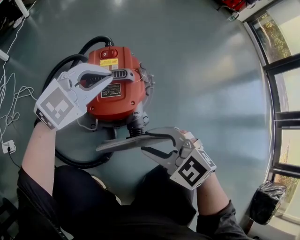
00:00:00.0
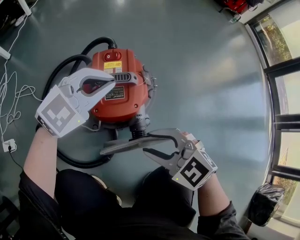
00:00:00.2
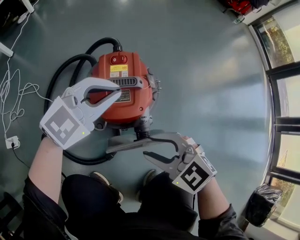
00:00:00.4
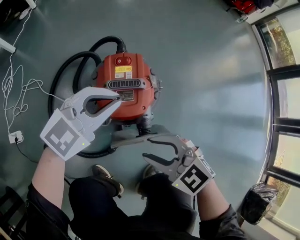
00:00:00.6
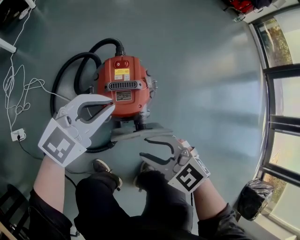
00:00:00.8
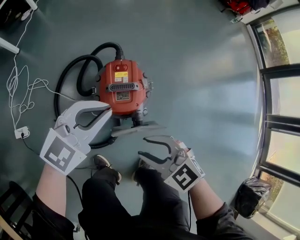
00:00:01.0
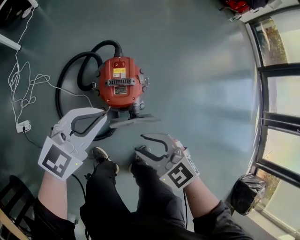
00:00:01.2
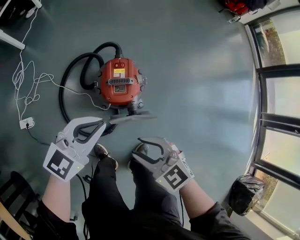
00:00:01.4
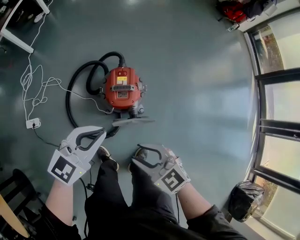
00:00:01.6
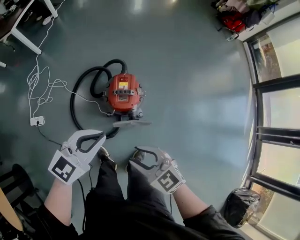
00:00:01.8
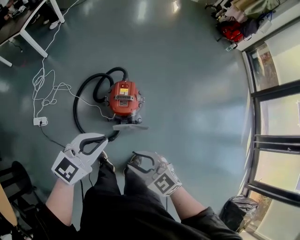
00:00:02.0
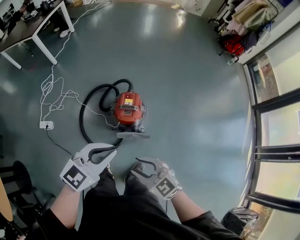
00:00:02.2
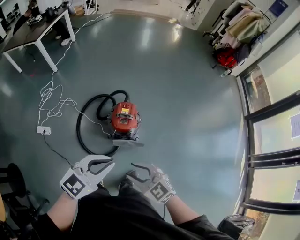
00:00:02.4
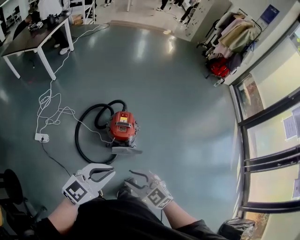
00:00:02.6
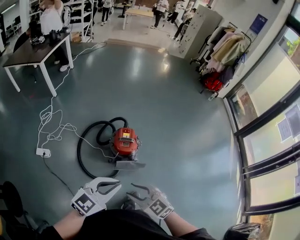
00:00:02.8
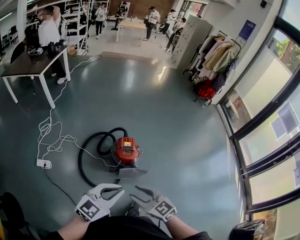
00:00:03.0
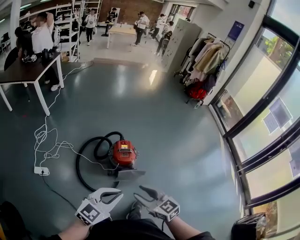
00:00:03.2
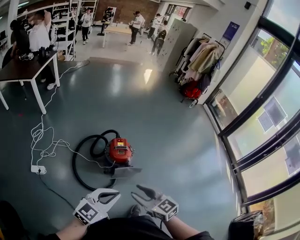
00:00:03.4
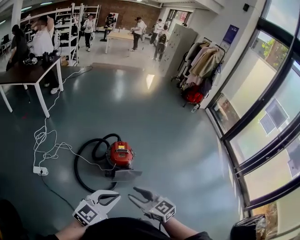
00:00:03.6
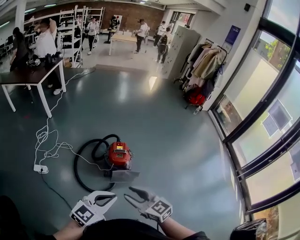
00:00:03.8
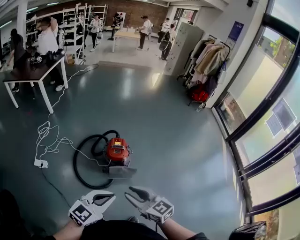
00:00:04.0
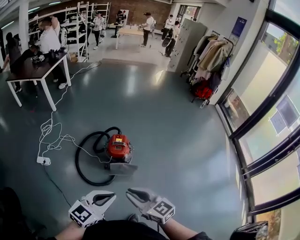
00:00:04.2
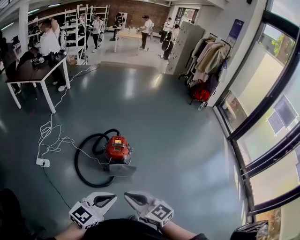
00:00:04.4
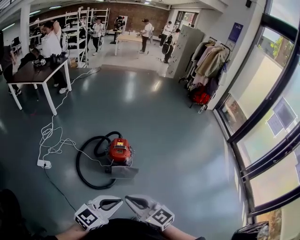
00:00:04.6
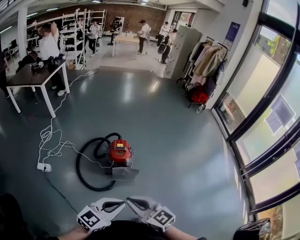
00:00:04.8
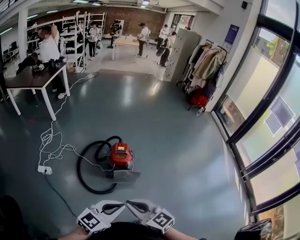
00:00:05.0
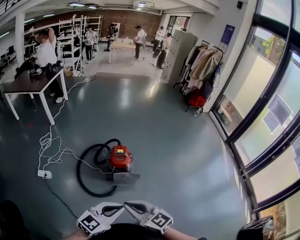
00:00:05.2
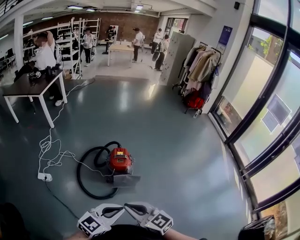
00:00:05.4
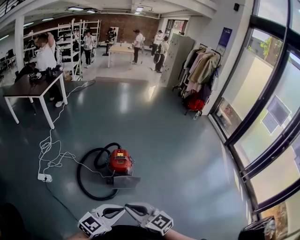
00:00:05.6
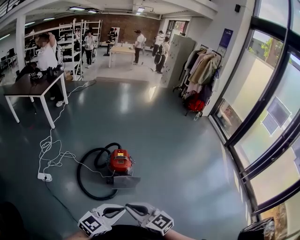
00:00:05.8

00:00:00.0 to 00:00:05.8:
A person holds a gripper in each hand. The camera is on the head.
00:00:00.0 to 00:00:01.4: The grippers both shift upward by some 25 cm. The left gripper rotates roughly 30 degrees.
00:00:01.4 to 00:00:02.8: The grippers both shift upward and backward by some 30 cm.
00:00:02.8 to 00:00:04.4: The right gripper travels backward, upward and to the right by roughly 15 cm, changes its angle by approximately 20 degrees, and closes up; the left gripper shifts approximately 15 cm backward and to the right.
00:00:04.4 to 00:00:05.8: The right gripper changes place by about 5 cm.

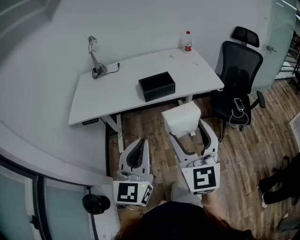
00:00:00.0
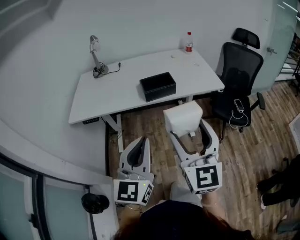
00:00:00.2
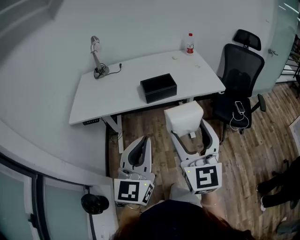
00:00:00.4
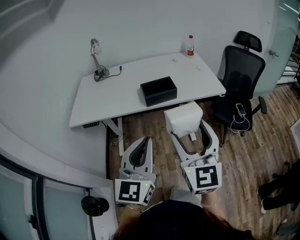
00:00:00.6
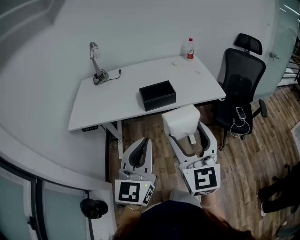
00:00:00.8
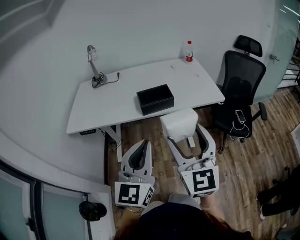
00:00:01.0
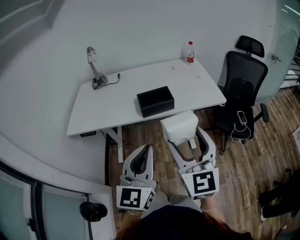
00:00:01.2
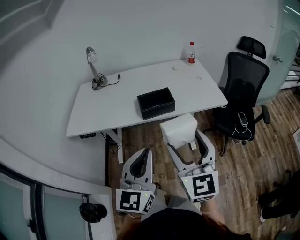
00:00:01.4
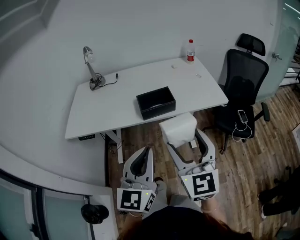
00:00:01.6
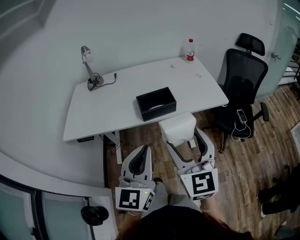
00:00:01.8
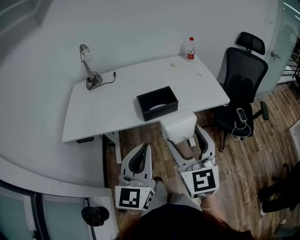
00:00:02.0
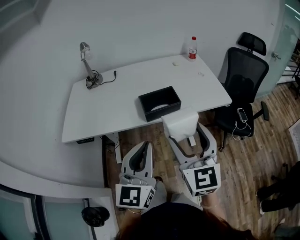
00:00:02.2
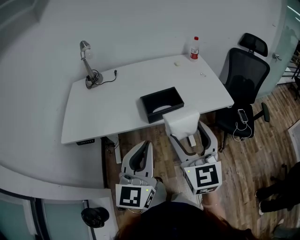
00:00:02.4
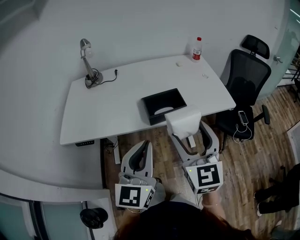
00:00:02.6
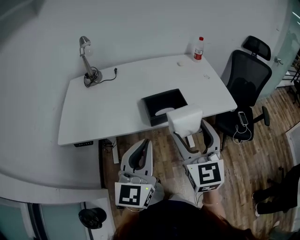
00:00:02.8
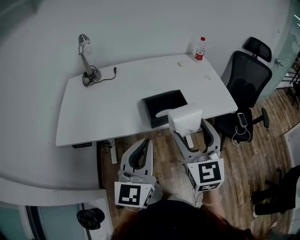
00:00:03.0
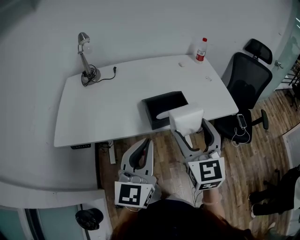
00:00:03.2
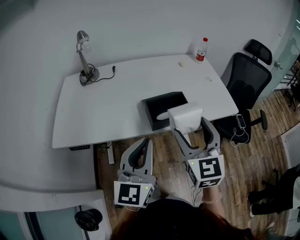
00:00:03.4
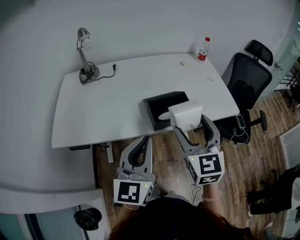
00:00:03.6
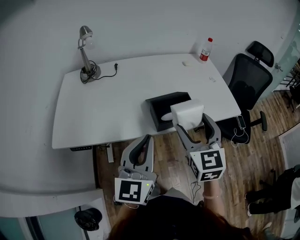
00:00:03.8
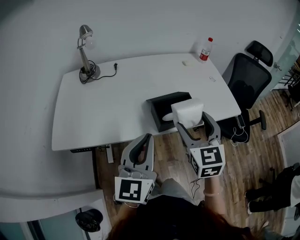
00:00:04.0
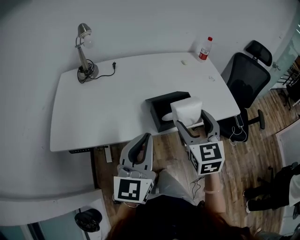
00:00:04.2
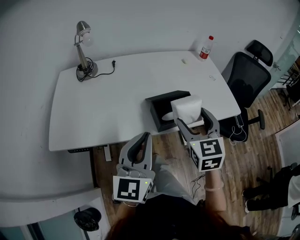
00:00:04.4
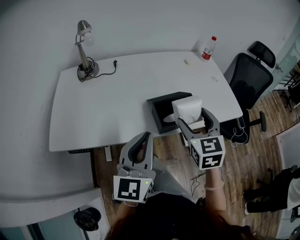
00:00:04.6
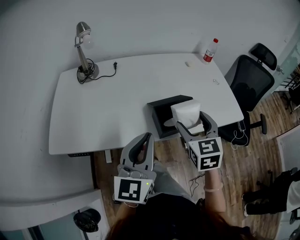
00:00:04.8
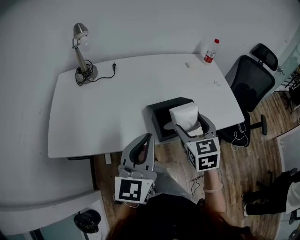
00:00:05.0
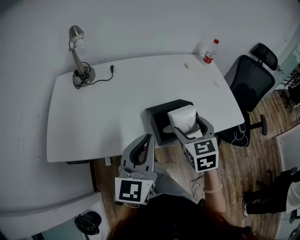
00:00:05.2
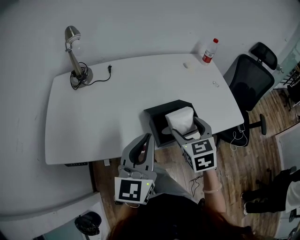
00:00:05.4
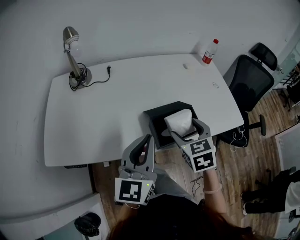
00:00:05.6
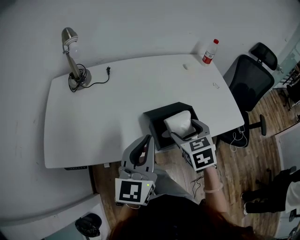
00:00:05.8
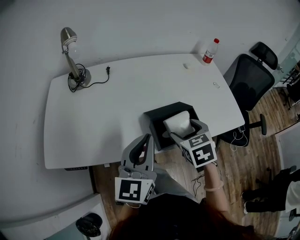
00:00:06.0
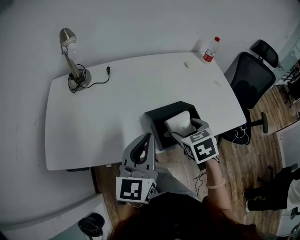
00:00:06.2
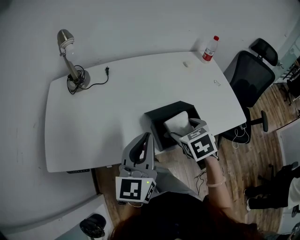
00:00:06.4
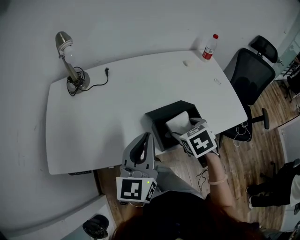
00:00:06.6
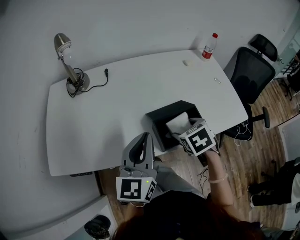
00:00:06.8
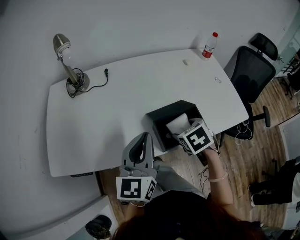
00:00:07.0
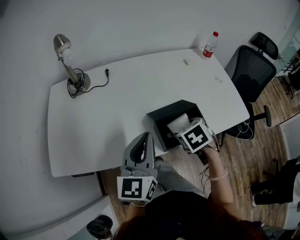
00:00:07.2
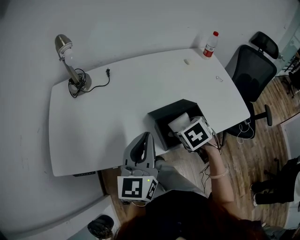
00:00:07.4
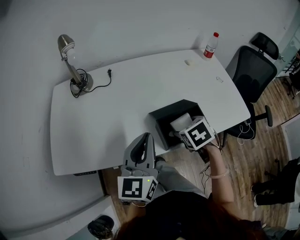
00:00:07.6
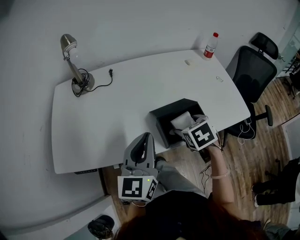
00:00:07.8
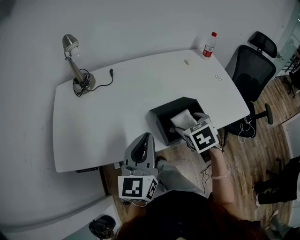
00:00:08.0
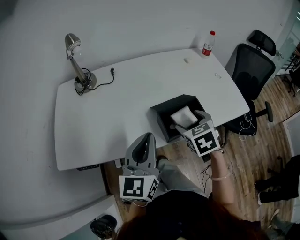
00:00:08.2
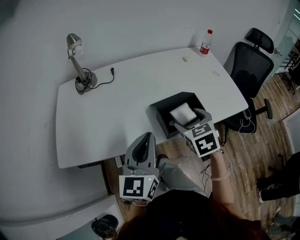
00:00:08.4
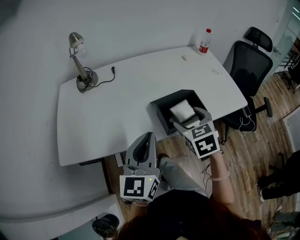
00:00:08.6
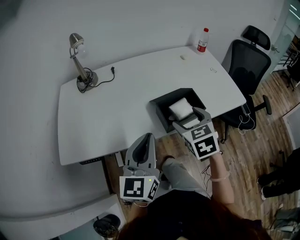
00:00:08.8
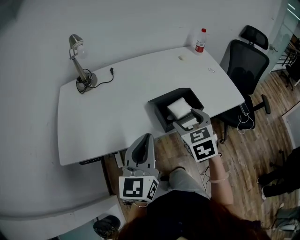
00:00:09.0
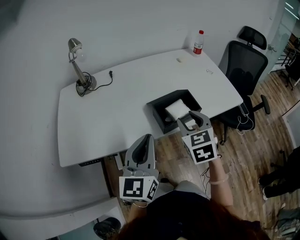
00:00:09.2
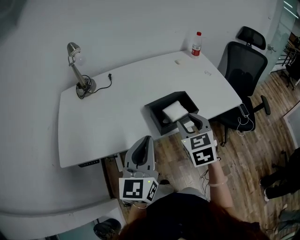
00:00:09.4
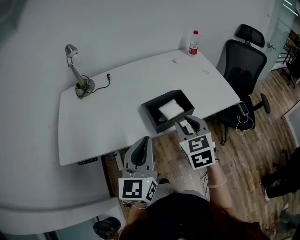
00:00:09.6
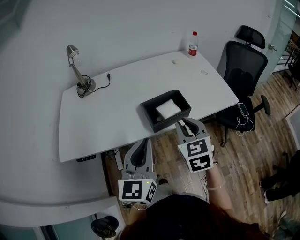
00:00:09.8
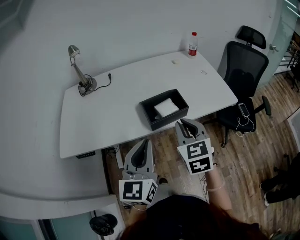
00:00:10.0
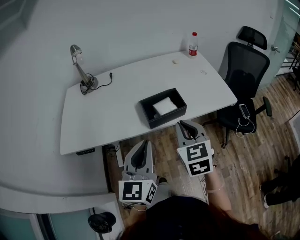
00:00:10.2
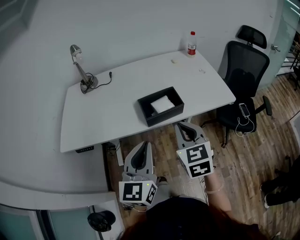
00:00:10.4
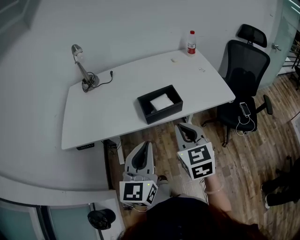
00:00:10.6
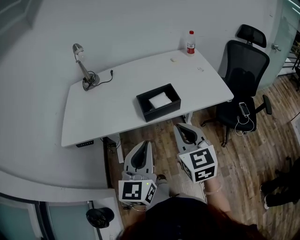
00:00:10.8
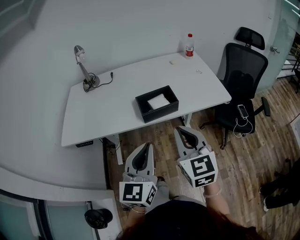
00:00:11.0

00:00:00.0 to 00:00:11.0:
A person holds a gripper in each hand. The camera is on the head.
00:00:00.0 to 00:00:01.6: Both grippers move forward, approximately 10 cm.
00:00:01.6 to 00:00:03.2: Both grippers move forward and to the left, some 15 cm.
00:00:03.2 to 00:00:04.8: The left gripper is displaced forward and to the left by some 10 cm; the right gripper shifts roughly 15 cm forward and downward.
00:00:04.8 to 00:00:06.2: The right gripper moves downward, some 10 cm, and swivels about 30 degrees; the left gripper shifts roughly 5 cm forward.
00:00:06.2 to 00:00:07.8: There are only small adjustments of the grippers.
00:00:07.8 to 00:00:09.4: The left gripper is displaced backward by about 10 cm, while the right gripper is displaced upward and backward by some 10 cm, tips its fingers upward by about 30 degrees, and closes its fingers.
00:00:09.4 to 00:00:11.0: The right gripper is displaced backward, upward and to the right by about 15 cm, swivels about 20 degrees, and closes its fingers. The left gripper moves backward and to the right, approximately 15 cm.

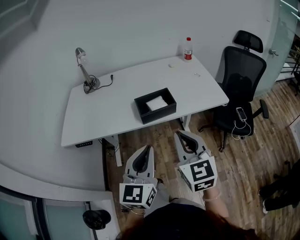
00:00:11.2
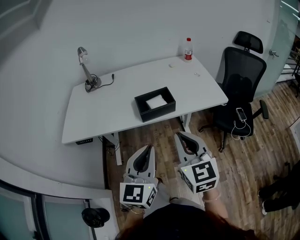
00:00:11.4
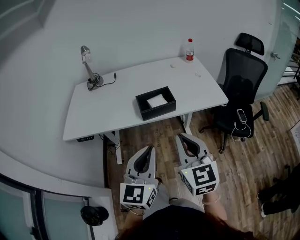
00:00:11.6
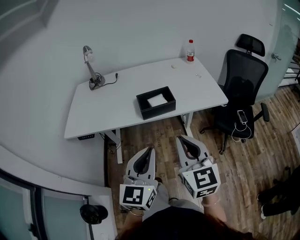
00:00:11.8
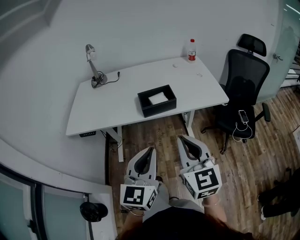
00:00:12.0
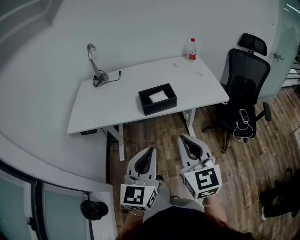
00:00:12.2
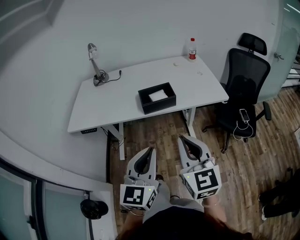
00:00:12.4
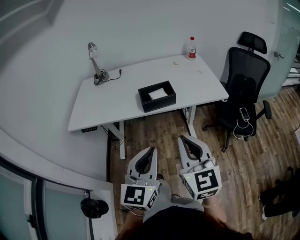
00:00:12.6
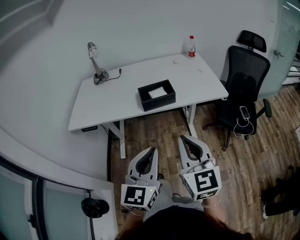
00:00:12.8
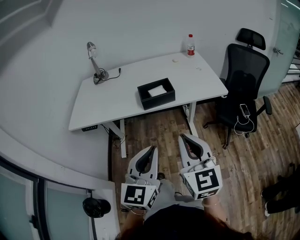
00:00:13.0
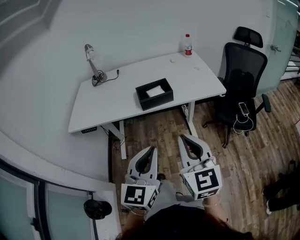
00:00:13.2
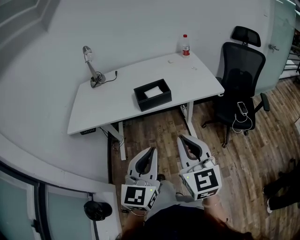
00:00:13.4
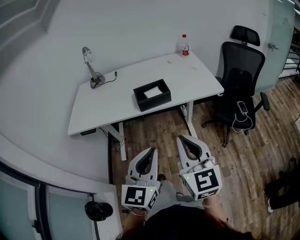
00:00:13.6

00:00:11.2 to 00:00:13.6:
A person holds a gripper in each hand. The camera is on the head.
00:00:11.2 to 00:00:12.4: Both grippers move backward, roughly 10 cm.
00:00:12.4 to 00:00:13.6: The grippers stay close to where they were, moving slightly.

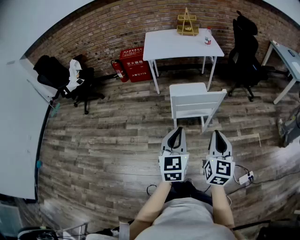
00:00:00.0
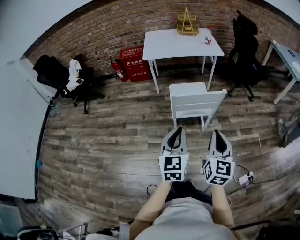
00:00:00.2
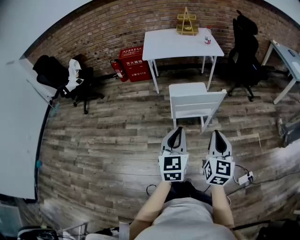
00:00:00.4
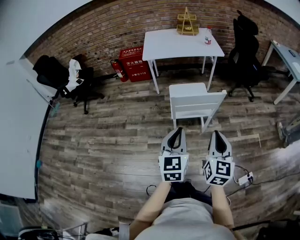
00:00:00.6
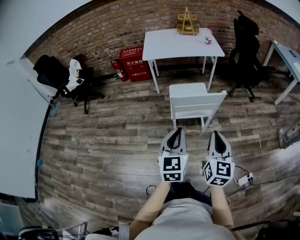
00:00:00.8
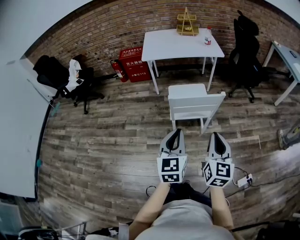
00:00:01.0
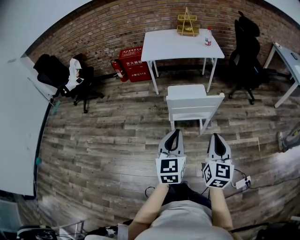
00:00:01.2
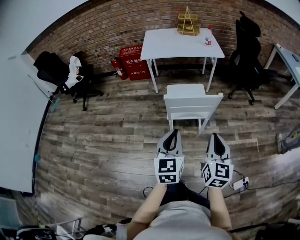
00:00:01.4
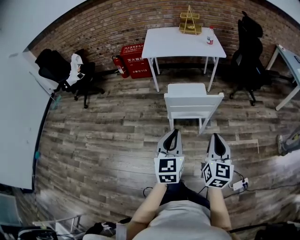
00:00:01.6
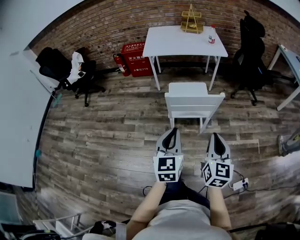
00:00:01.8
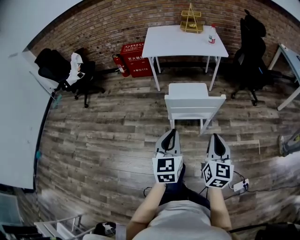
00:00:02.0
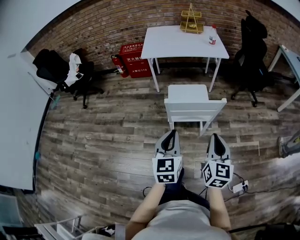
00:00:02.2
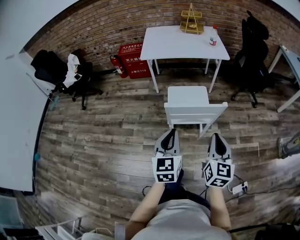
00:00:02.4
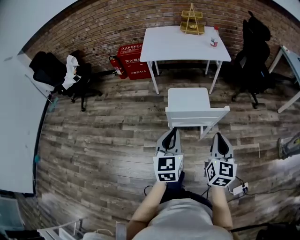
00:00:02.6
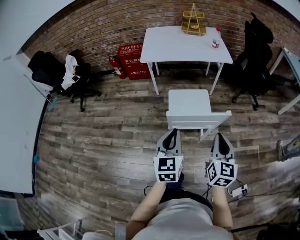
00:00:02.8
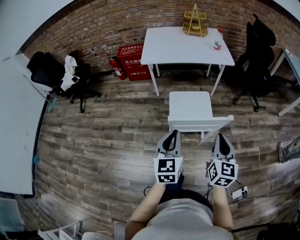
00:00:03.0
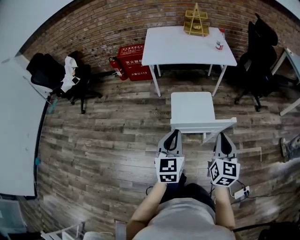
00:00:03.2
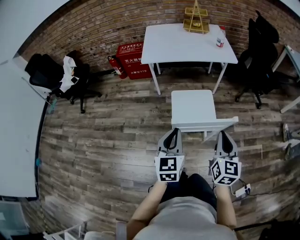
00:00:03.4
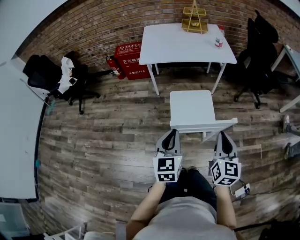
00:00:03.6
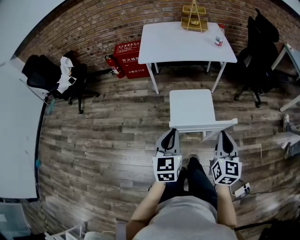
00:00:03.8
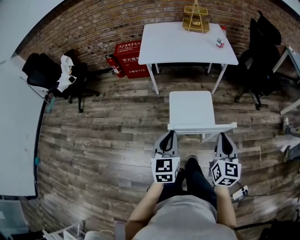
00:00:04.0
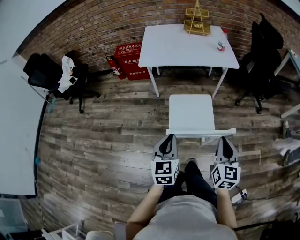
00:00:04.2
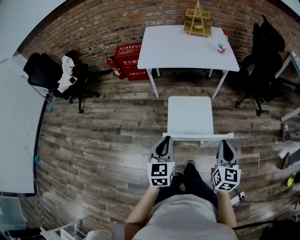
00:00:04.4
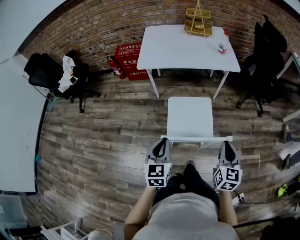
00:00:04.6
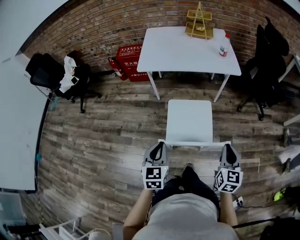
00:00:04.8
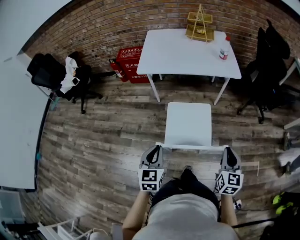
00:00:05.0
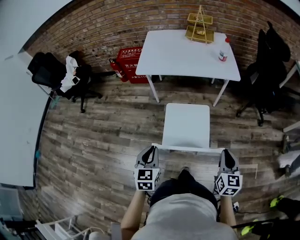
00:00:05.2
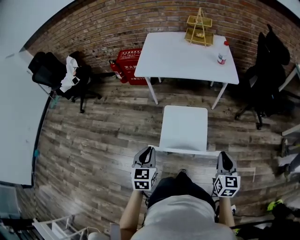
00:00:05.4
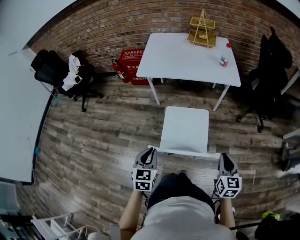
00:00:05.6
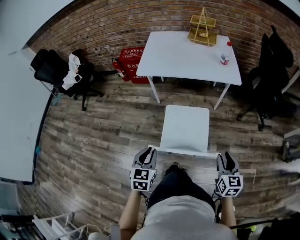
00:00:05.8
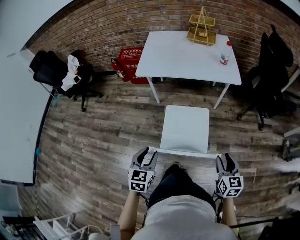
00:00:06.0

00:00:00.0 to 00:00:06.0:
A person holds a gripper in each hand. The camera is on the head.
00:00:00.0 to 00:00:01.6: The left gripper shifts by roughly 5 cm, while the right gripper heads to the right, covering roughly 5 cm.
00:00:01.6 to 00:00:03.0: Both grippers travel together forward, about 15 cm.
00:00:03.0 to 00:00:04.4: Both grippers move forward, about 10 cm.
00:00:04.4 to 00:00:06.0: The left gripper opens up. The right gripper is displaced to the right and downward by about 10 cm, and opens up.
